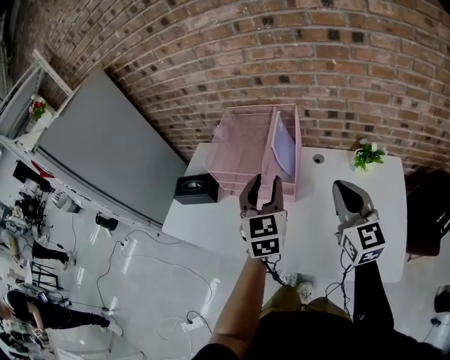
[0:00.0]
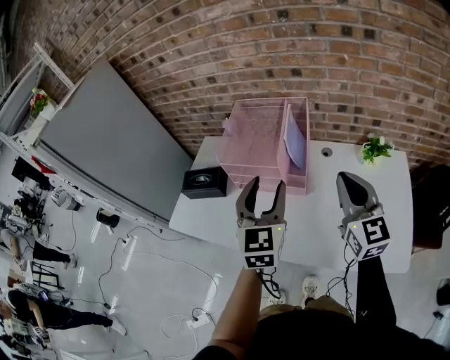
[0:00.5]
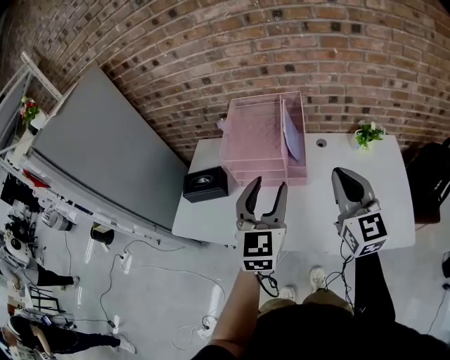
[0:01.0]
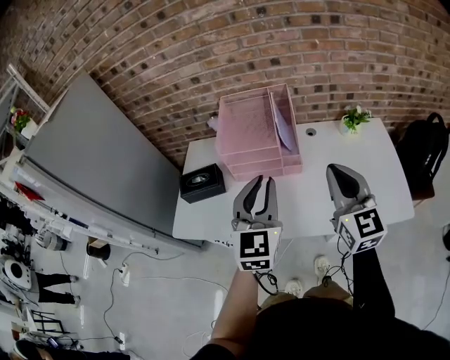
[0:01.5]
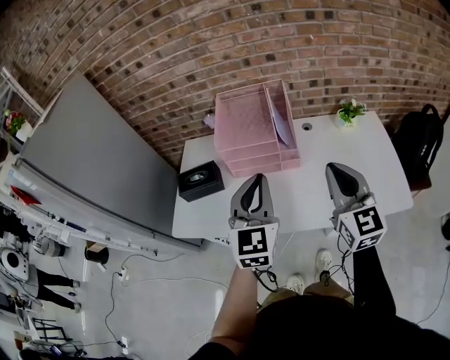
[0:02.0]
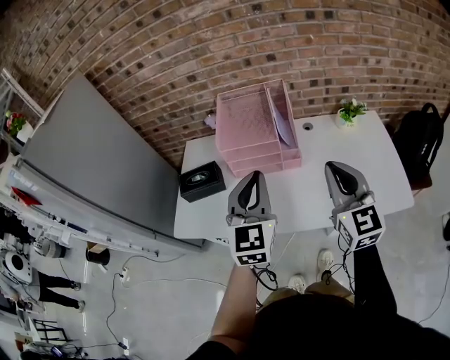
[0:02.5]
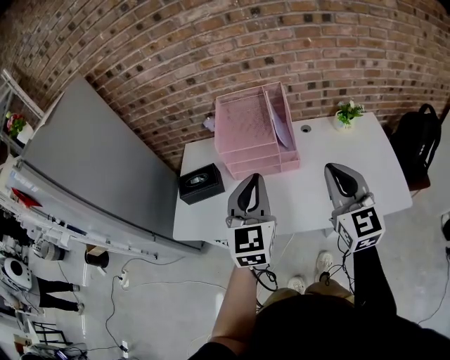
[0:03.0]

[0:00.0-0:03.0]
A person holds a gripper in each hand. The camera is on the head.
0:00.0 to 0:01.5: The left gripper travels backward and to the left by roughly 15 cm, rotates approximately 20 degrees, and closes its fingers. Meanwhile the right gripper moves to the left and backward, roughly 15 cm.
0:01.5 to 0:03.0: There are only small adjustments of the grippers.

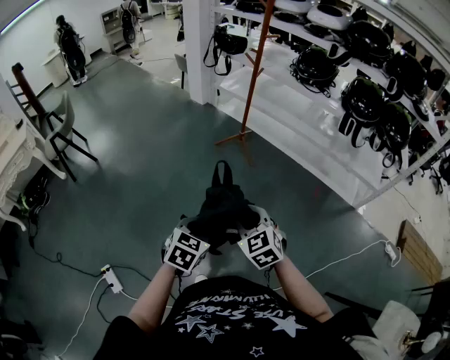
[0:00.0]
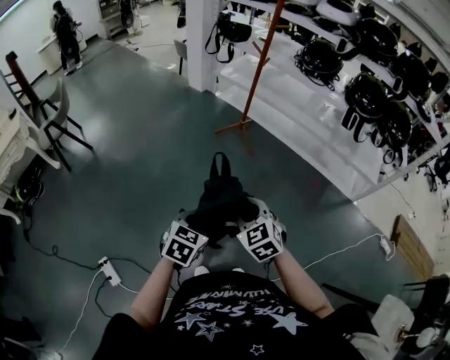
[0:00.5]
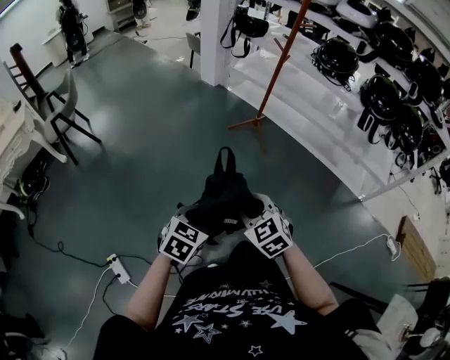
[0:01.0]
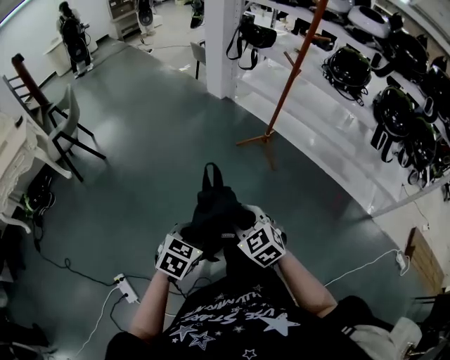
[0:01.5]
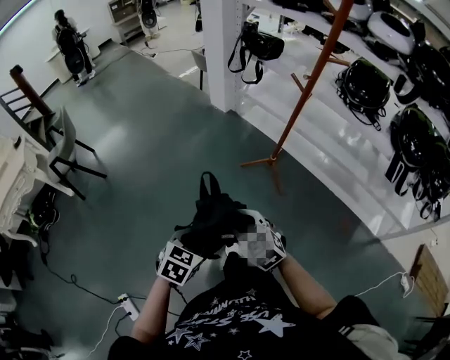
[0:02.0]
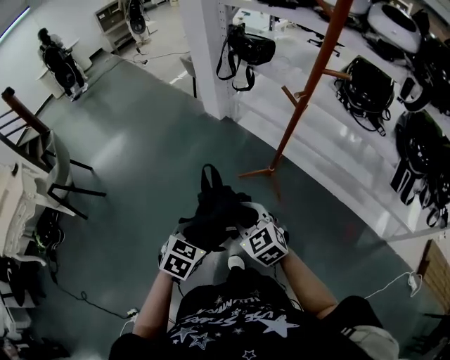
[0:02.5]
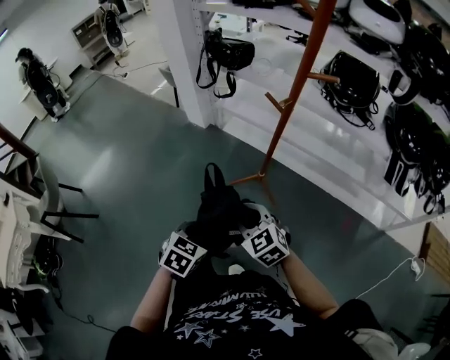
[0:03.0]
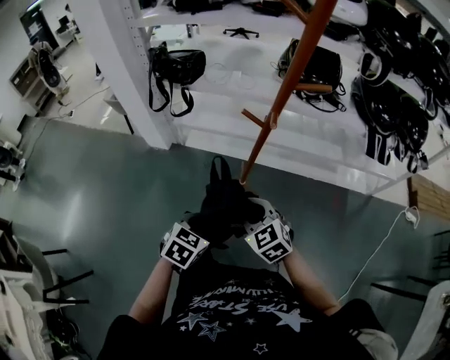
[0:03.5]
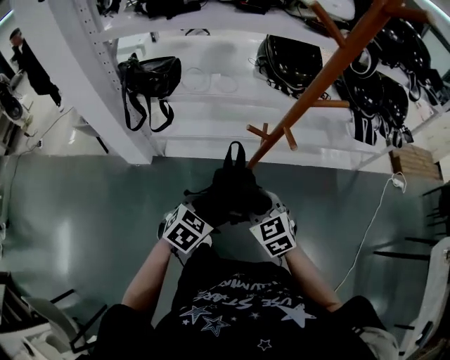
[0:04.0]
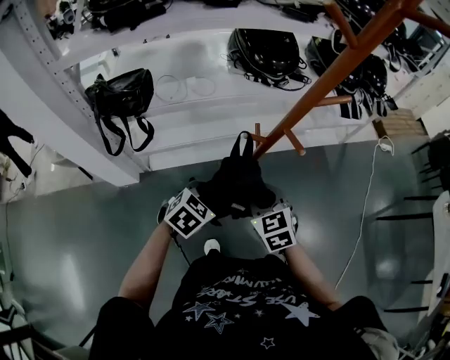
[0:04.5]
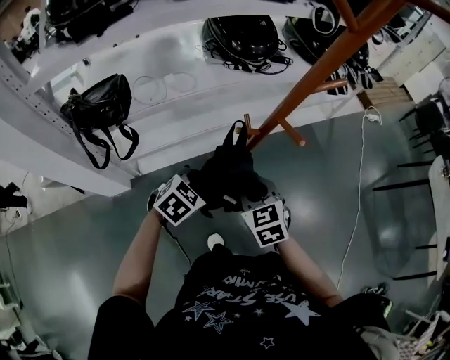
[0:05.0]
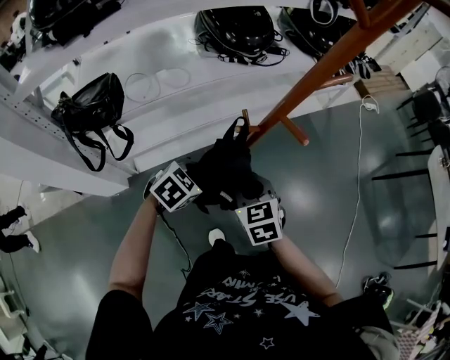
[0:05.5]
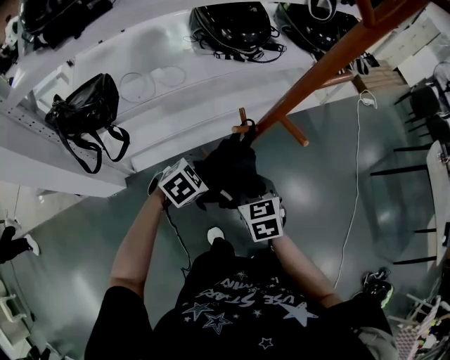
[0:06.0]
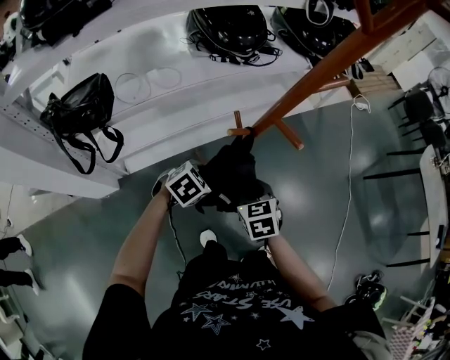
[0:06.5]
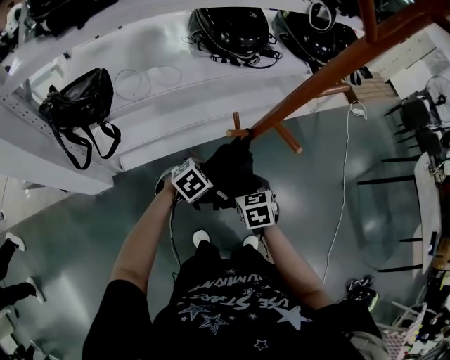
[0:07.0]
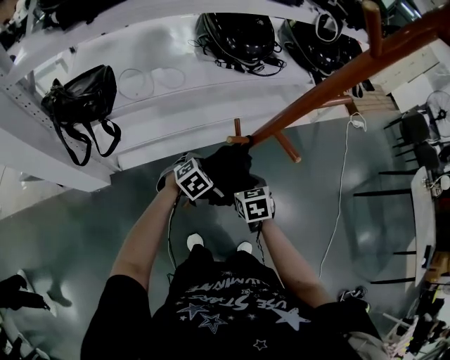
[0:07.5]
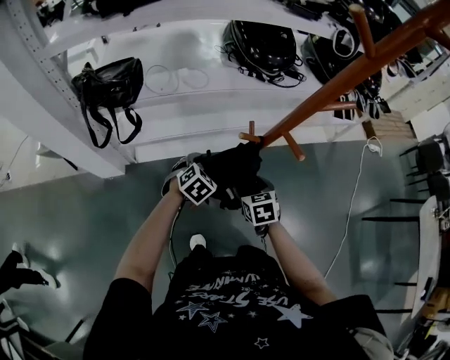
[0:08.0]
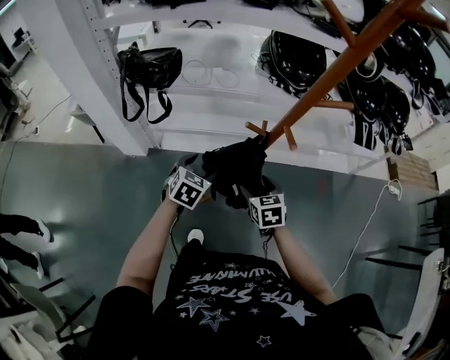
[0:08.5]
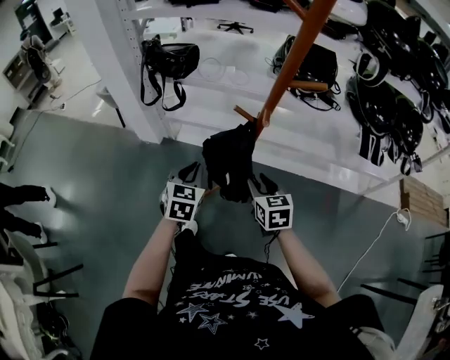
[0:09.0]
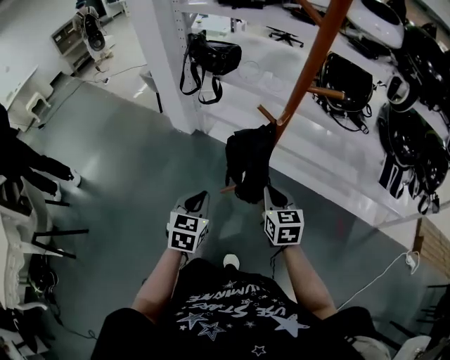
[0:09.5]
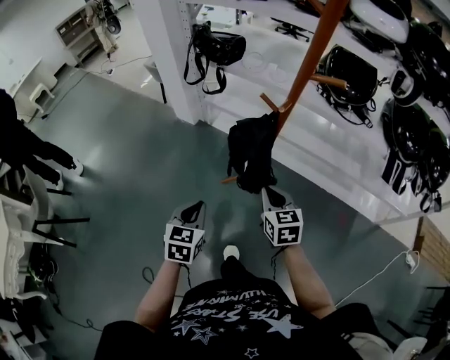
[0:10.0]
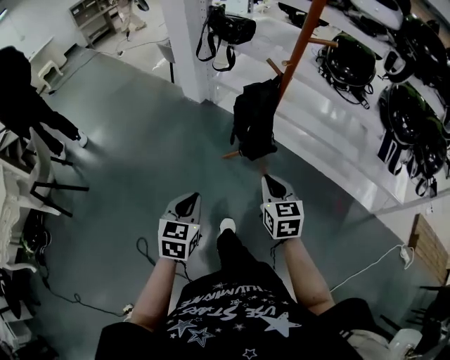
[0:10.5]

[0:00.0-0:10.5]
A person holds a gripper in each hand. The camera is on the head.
0:00.0 to 0:02.0: Both grippers move forward and to the left, approximately 35 cm.
0:02.0 to 0:04.0: The two grippers travel together, roughly 50 cm. The left gripper turns by some 60 degrees. The right gripper swivels roughly 60 degrees.
0:04.0 to 0:06.5: The left gripper shifts by roughly 20 cm, and swivels approximately 40 degrees. Meanwhile the right gripper moves downward, approximately 10 cm, and turns by about 40 degrees.
0:06.5 to 0:08.5: The left gripper changes place by approximately 10 cm, changes its angle by some 50 degrees, and opens its fingers; the right gripper changes its angle by approximately 20 degrees, and opens.
0:08.5 to 0:10.5: The left gripper ends up about 50 cm from where it was, changes its angle by some 50 degrees, and closes its fingers, while the right gripper changes place by some 30 cm, swivels roughly 30 degrees, and closes its fingers.

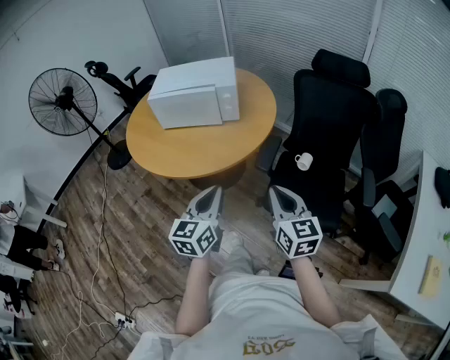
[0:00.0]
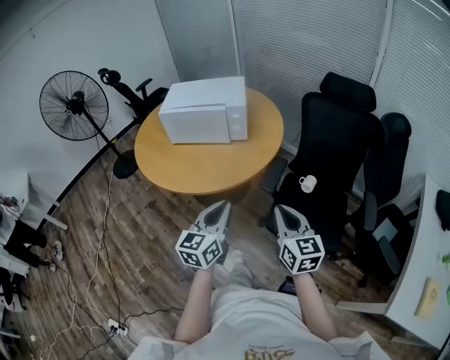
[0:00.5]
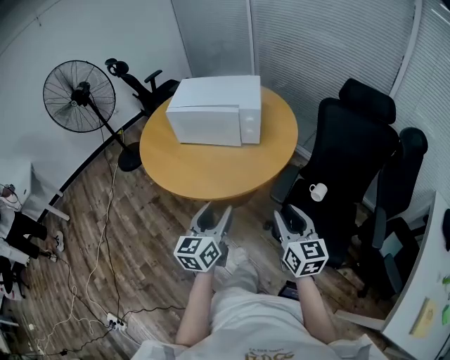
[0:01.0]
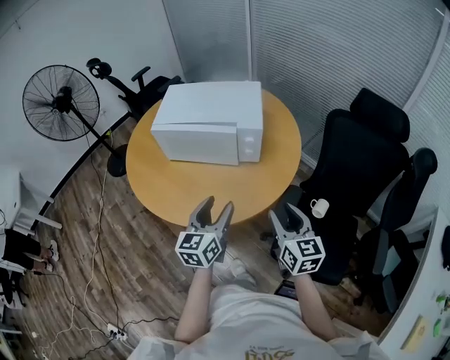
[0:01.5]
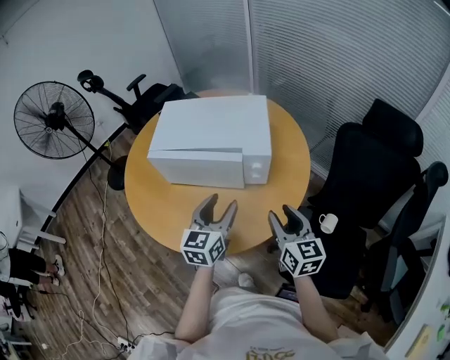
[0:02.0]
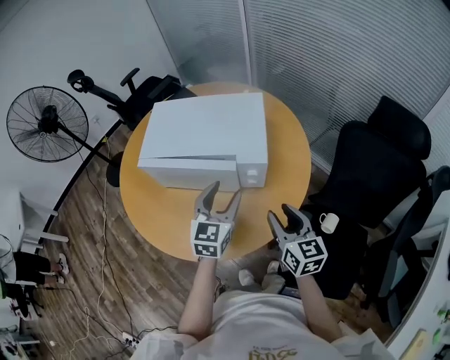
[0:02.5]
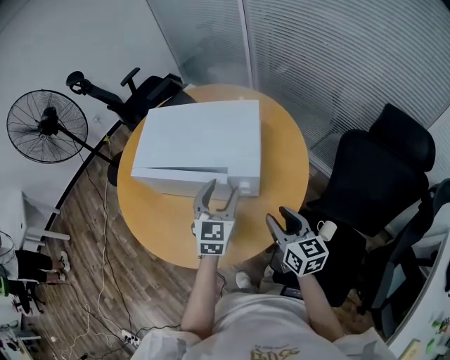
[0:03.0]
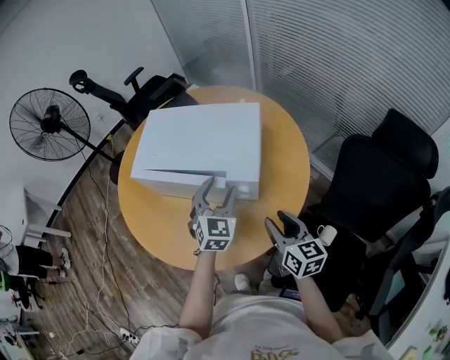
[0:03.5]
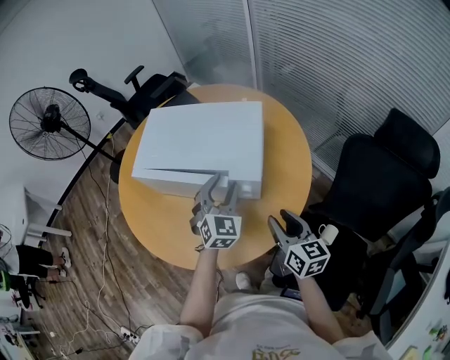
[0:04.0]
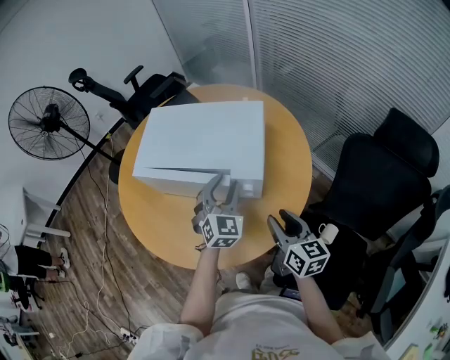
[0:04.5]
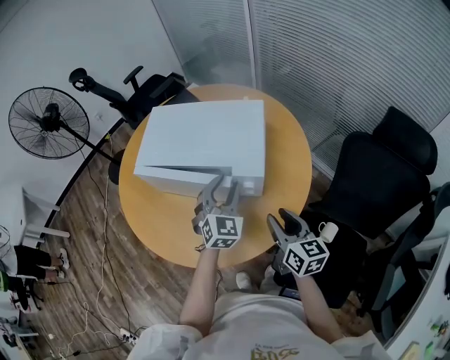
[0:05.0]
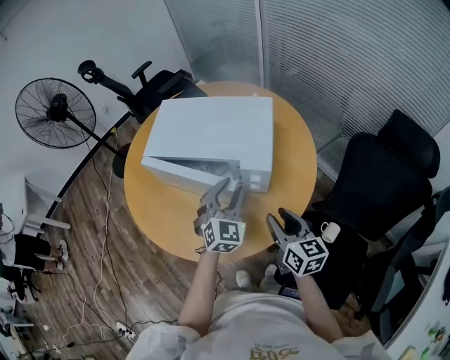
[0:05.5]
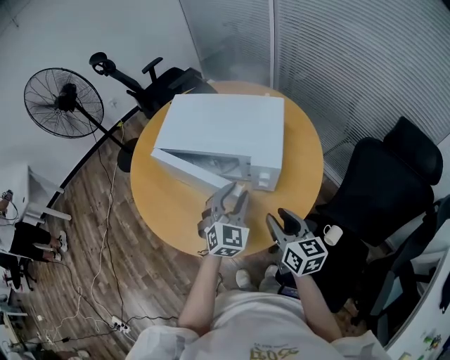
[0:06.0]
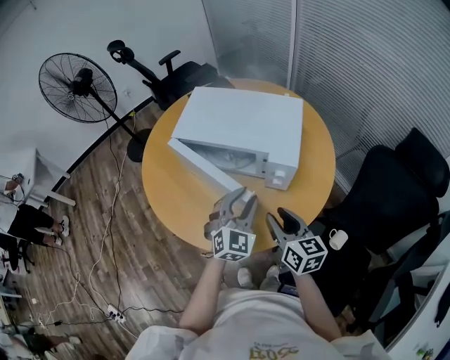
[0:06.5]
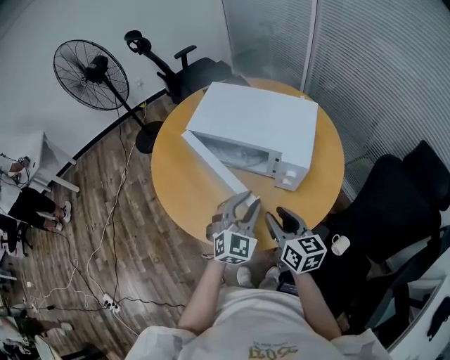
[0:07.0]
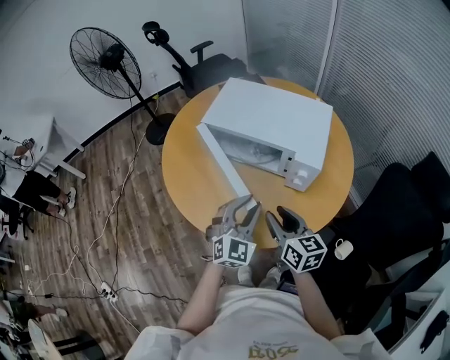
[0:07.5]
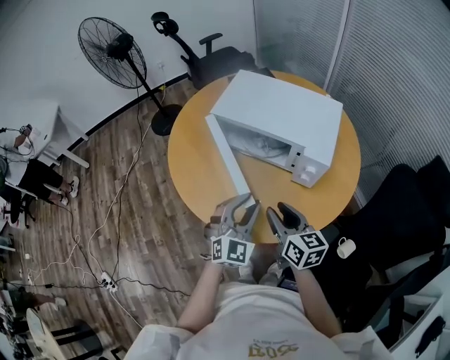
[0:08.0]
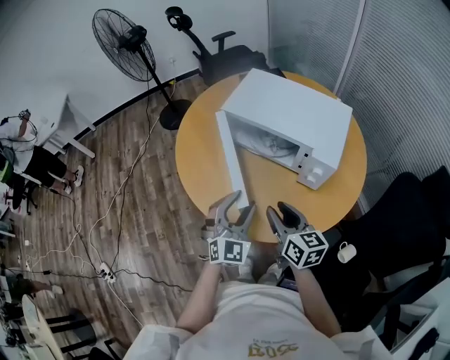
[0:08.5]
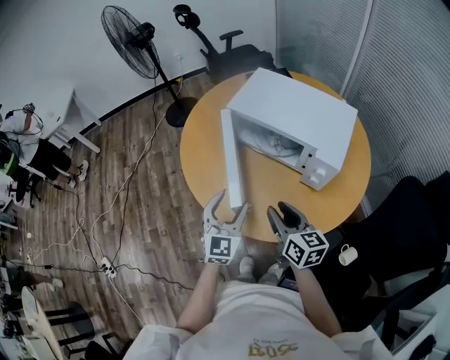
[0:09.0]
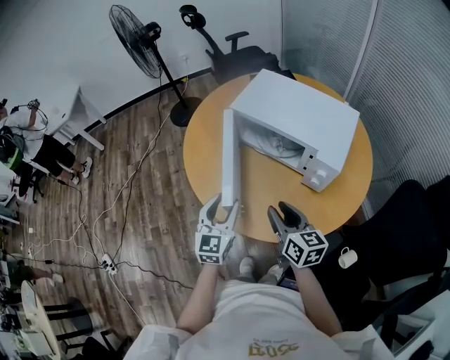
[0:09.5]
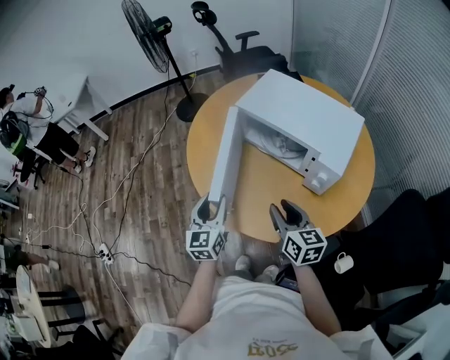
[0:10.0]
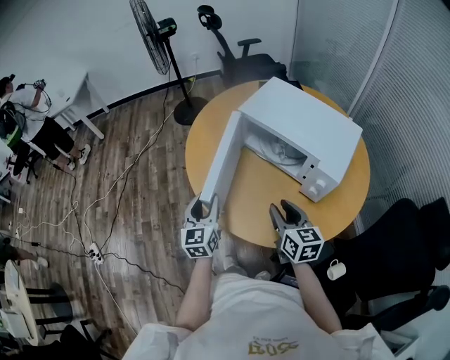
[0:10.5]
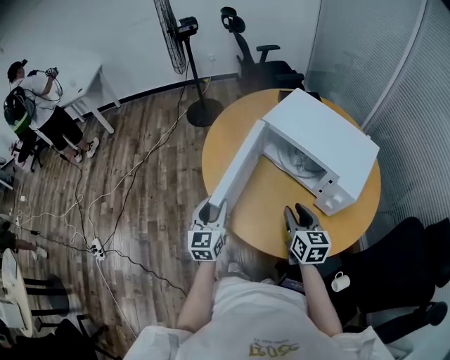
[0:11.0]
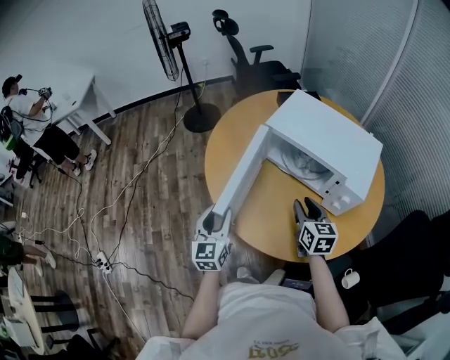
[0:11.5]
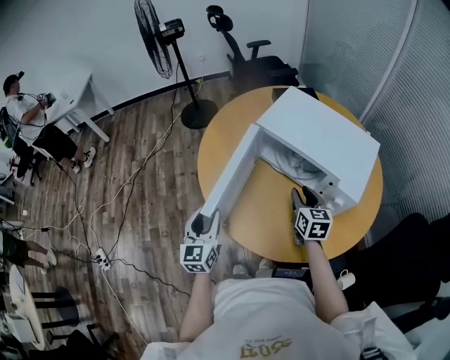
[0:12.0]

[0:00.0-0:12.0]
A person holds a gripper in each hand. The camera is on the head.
0:00.0 to 0:02.0: Both grippers travel together forward, some 35 cm. The right gripper opens up, while the left gripper opens its fingers.
0:02.0 to 0:04.0: The right gripper heads forward and to the right, covering approximately 10 cm. Meanwhile the left gripper shifts some 15 cm forward and to the right, and turns by roughly 40 degrees.
0:04.0 to 0:06.0: The right gripper travels to the left by some 5 cm. The left gripper heads backward, covering some 5 cm.
0:06.0 to 0:08.0: The left gripper heads to the left and backward, covering approximately 15 cm; the right gripper travels to the left by approximately 10 cm.
0:08.0 to 0:10.0: The left gripper heads to the left, covering approximately 15 cm, and rolls counterclockwise, seen from behind, by about 40 degrees.
0:10.0 to 0:12.0: The left gripper heads to the left, covering approximately 5 cm, while the right gripper is displaced forward by approximately 15 cm.

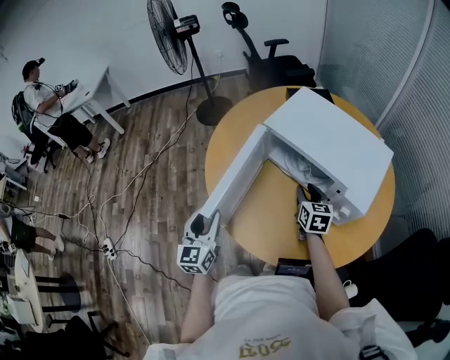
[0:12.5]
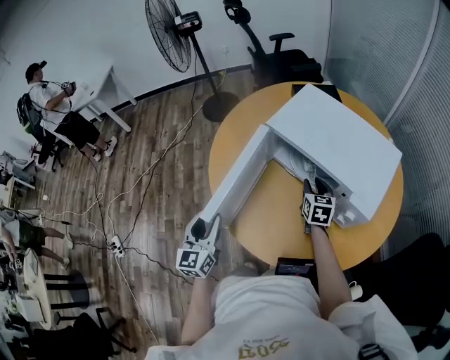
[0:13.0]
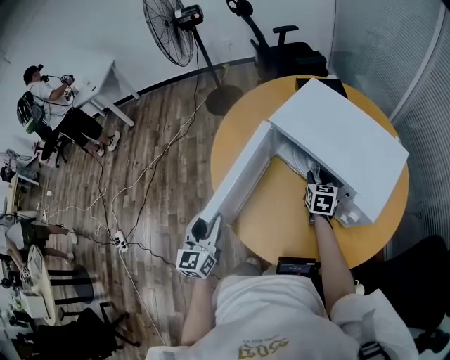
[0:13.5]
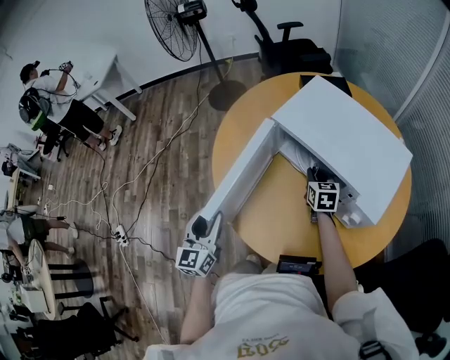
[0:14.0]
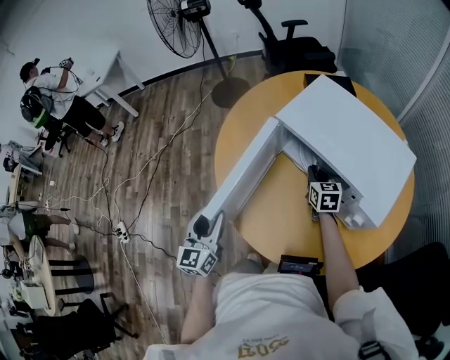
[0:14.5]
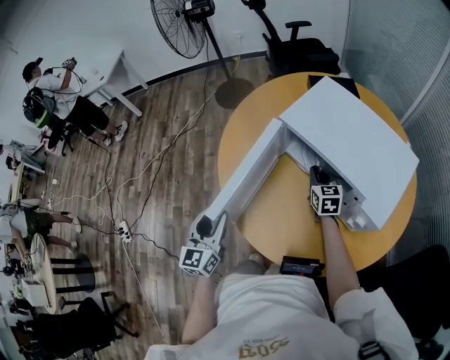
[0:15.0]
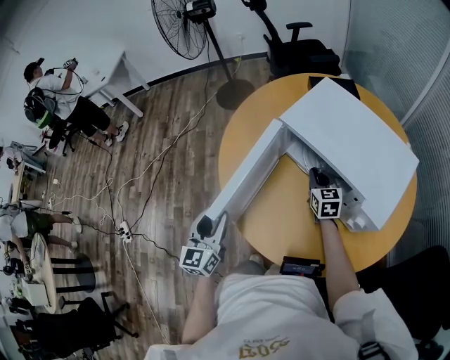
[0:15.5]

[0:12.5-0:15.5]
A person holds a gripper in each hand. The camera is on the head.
0:12.5 to 0:14.0: The right gripper travels forward by roughly 5 cm.
0:14.0 to 0:15.5: There are only small adjustments of the grippers.
